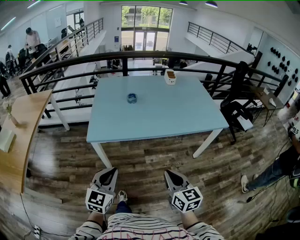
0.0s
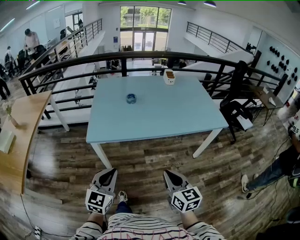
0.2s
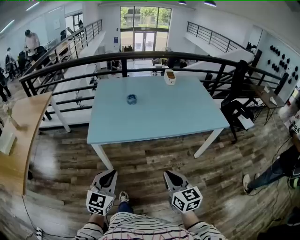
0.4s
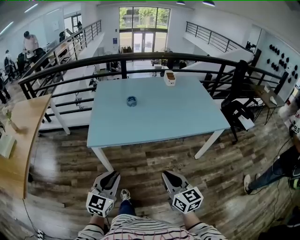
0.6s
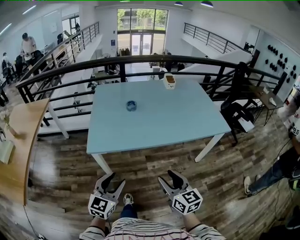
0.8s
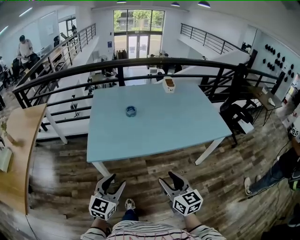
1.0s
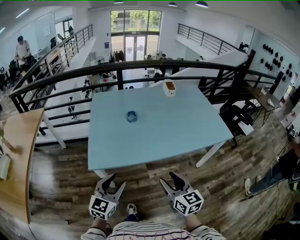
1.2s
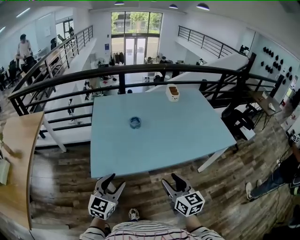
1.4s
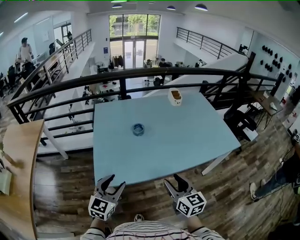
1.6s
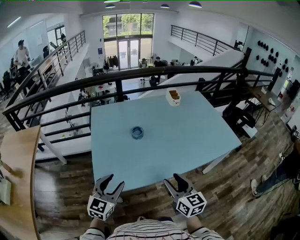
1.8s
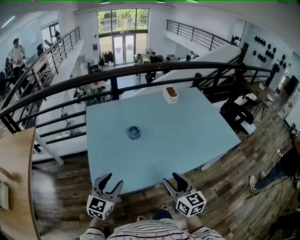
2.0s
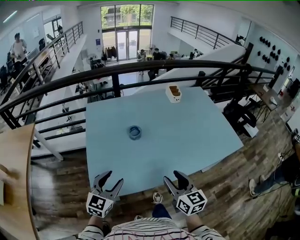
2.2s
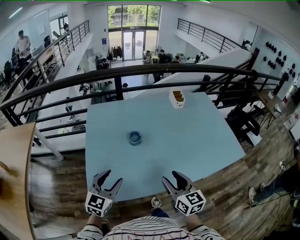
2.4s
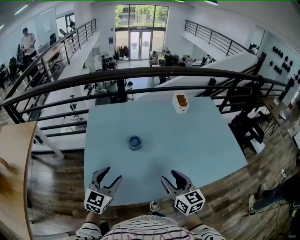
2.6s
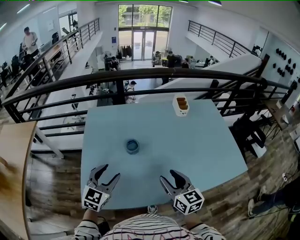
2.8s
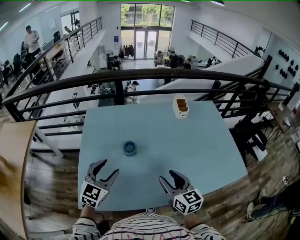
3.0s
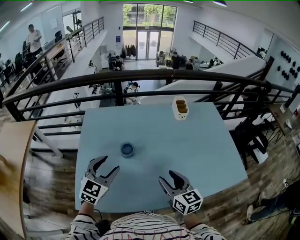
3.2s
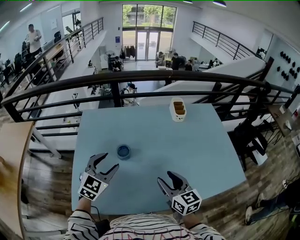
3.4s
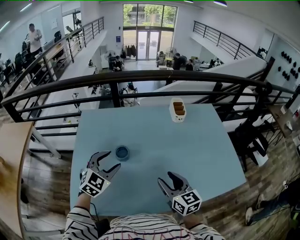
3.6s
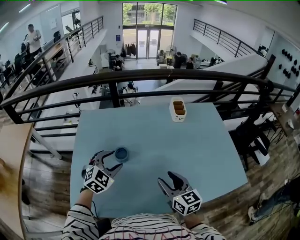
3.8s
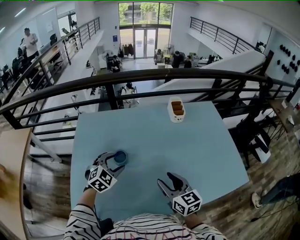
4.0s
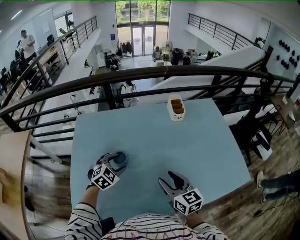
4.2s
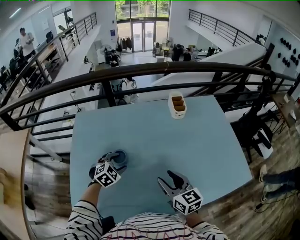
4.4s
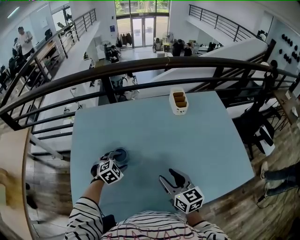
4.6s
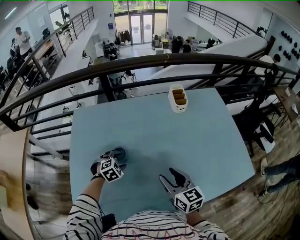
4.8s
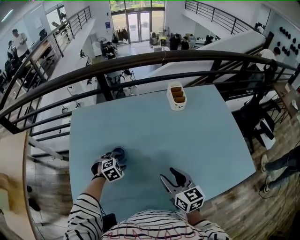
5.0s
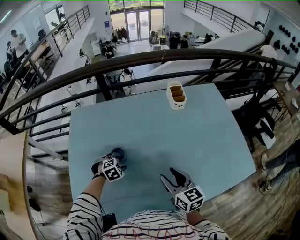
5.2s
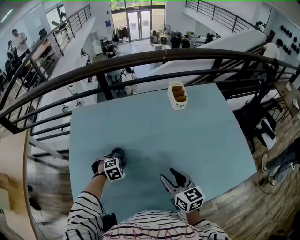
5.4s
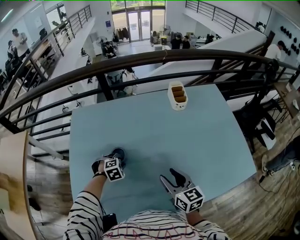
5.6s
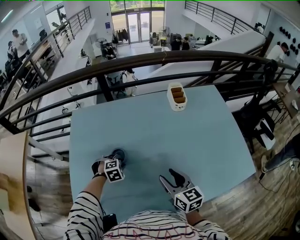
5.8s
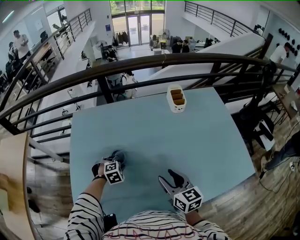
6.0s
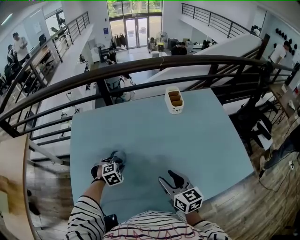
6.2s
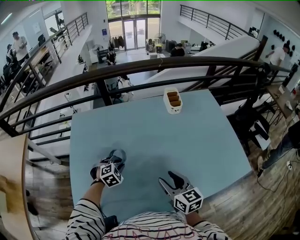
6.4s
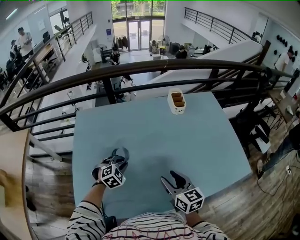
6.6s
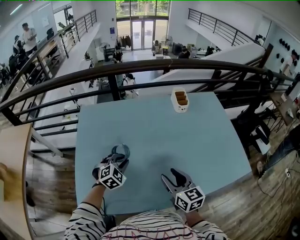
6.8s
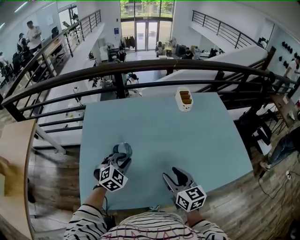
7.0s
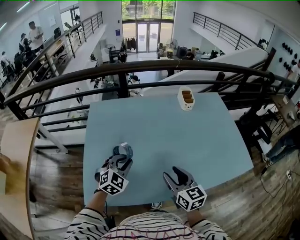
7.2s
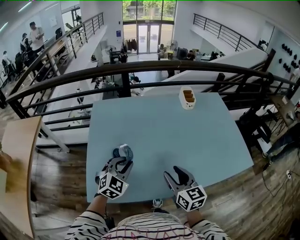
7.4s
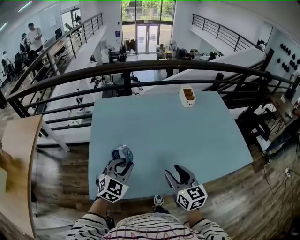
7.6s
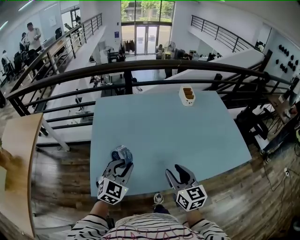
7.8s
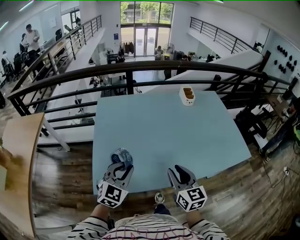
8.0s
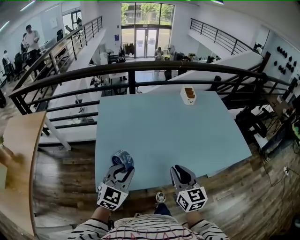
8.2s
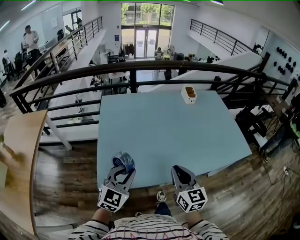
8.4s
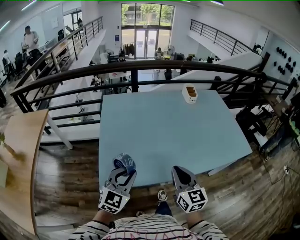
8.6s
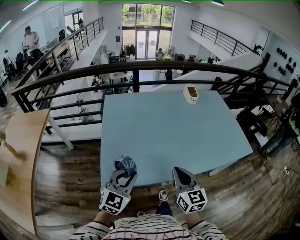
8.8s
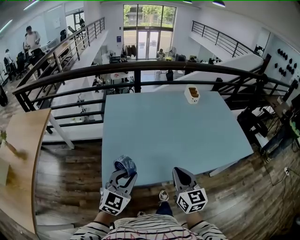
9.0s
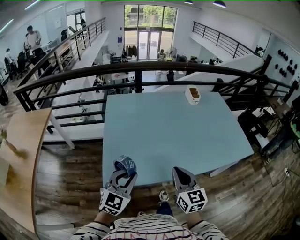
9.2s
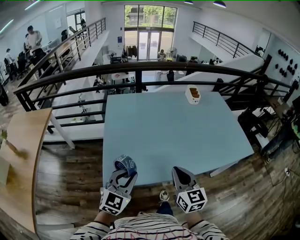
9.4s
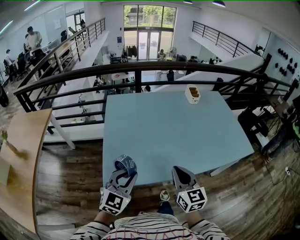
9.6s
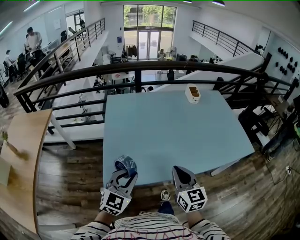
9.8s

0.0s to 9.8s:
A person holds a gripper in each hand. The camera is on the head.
0.0s to 1.4s: Both grippers travel together forward, about 20 cm. The left gripper opens, while the right gripper opens.
1.4s to 2.8s: Both grippers travel together forward, about 25 cm.
2.8s to 4.2s: The left gripper is displaced forward, downward and to the right by about 25 cm, and turns by approximately 30 degrees, while the right gripper is displaced forward and to the right by about 10 cm.
4.2s to 5.6s: The left gripper goes roughly 15 cm downward, changes its angle by roughly 30 degrees, and closes.
5.6s to 7.0s: The left gripper moves upward and backward, some 15 cm, and tilts its fingers roughly 30 degrees upward. The right gripper moves backward, approximately 5 cm.
7.0s to 8.4s: The left gripper heads backward and upward, covering roughly 25 cm, and rotates about 30 degrees; the right gripper travels backward and to the left by some 15 cm, and closes its fingers.
8.4s to 9.8s: There are only small adjustments of the grippers.

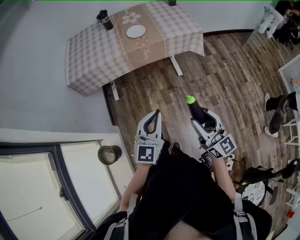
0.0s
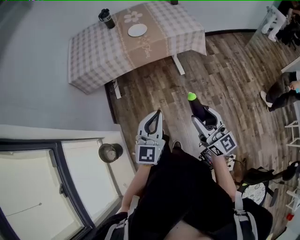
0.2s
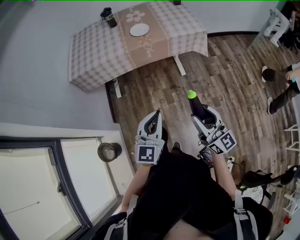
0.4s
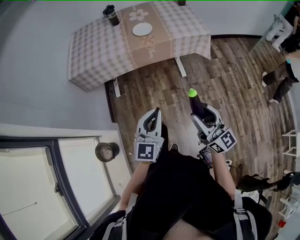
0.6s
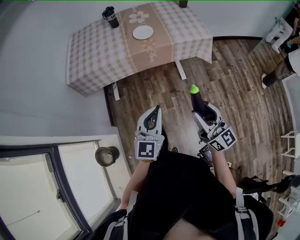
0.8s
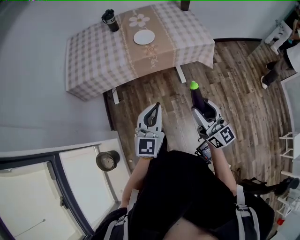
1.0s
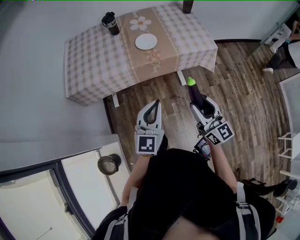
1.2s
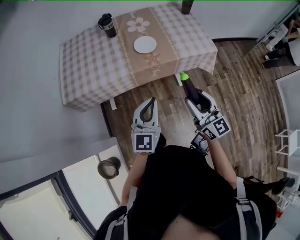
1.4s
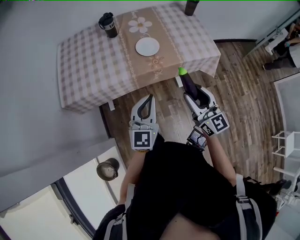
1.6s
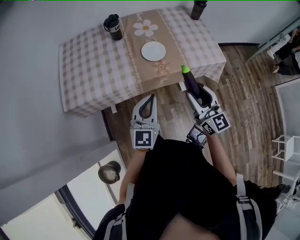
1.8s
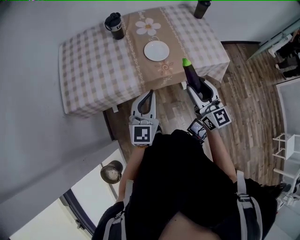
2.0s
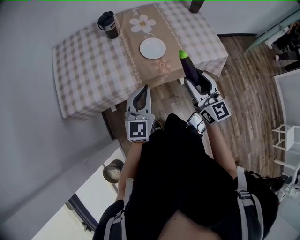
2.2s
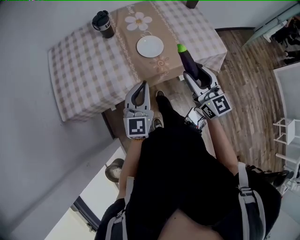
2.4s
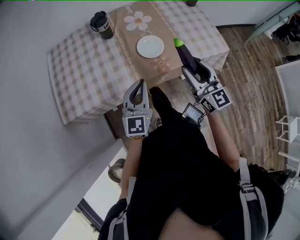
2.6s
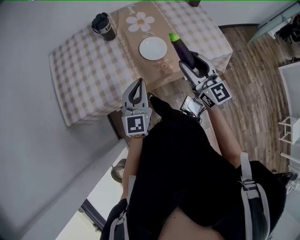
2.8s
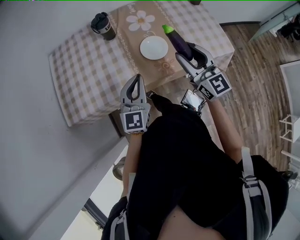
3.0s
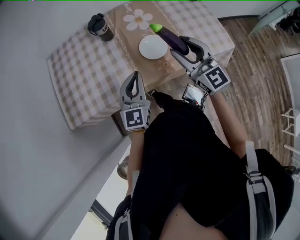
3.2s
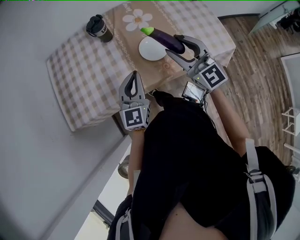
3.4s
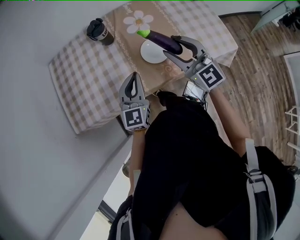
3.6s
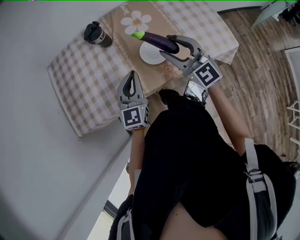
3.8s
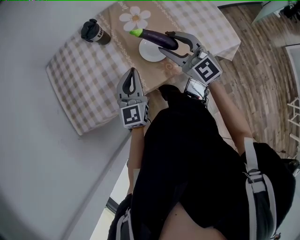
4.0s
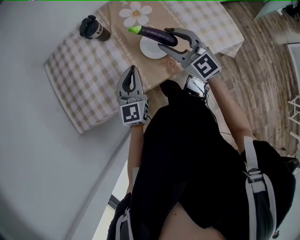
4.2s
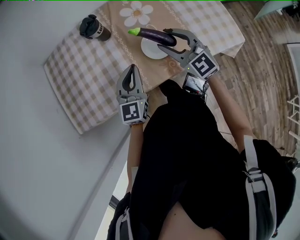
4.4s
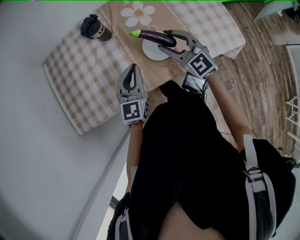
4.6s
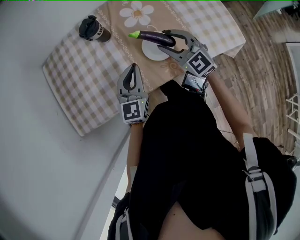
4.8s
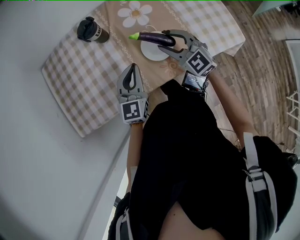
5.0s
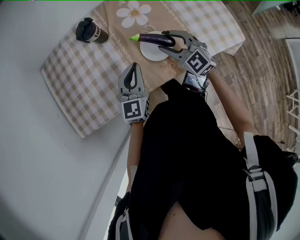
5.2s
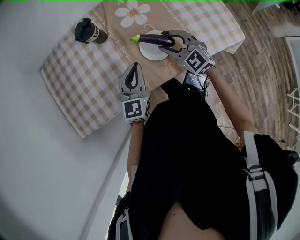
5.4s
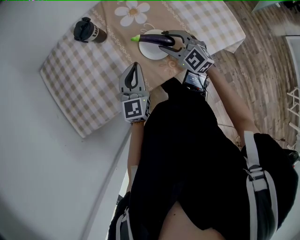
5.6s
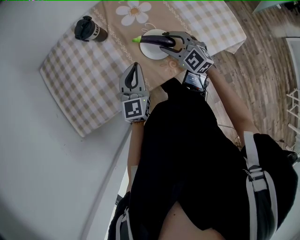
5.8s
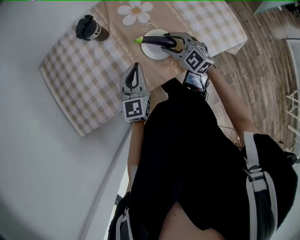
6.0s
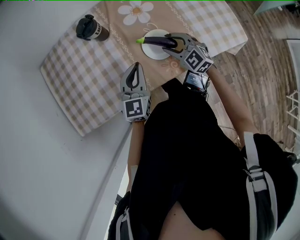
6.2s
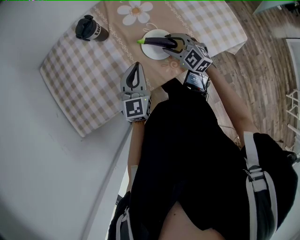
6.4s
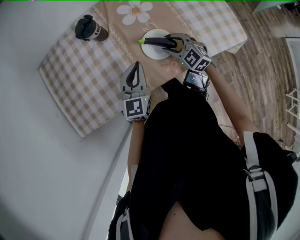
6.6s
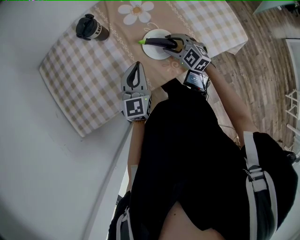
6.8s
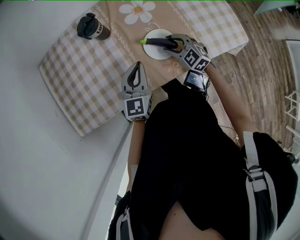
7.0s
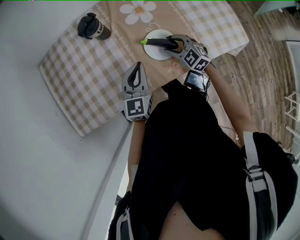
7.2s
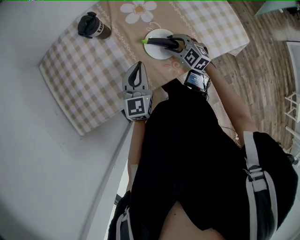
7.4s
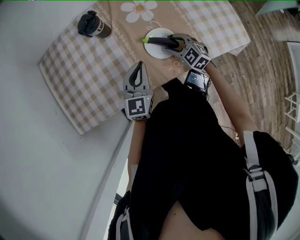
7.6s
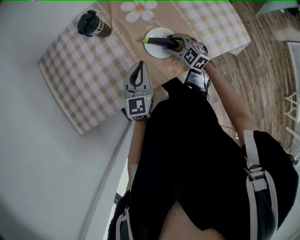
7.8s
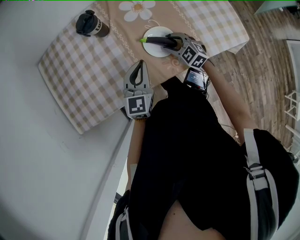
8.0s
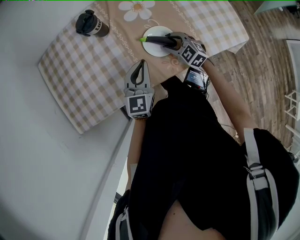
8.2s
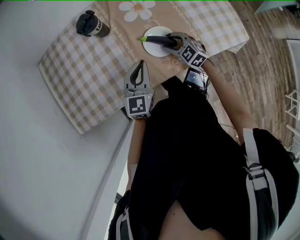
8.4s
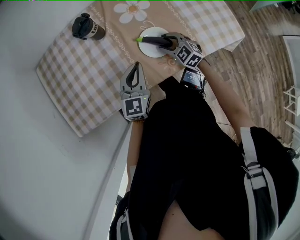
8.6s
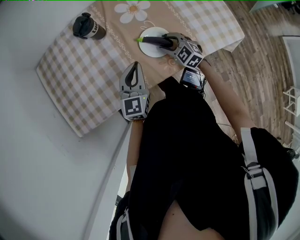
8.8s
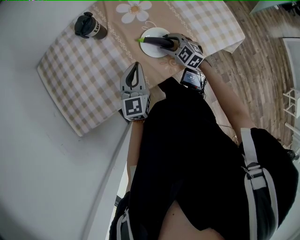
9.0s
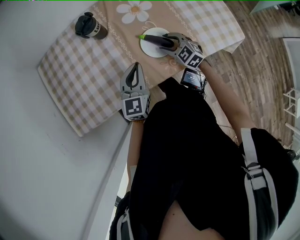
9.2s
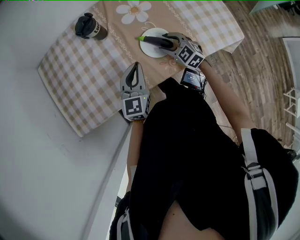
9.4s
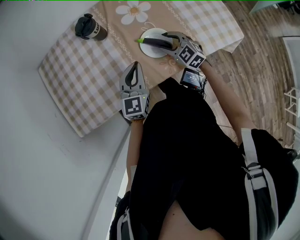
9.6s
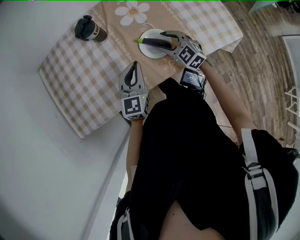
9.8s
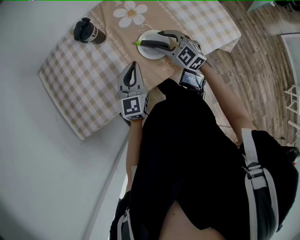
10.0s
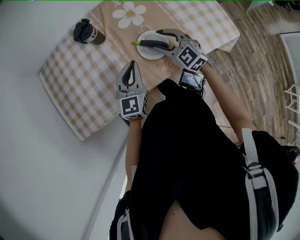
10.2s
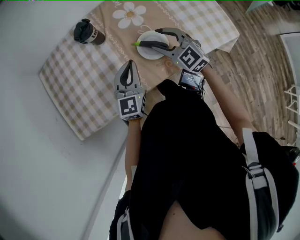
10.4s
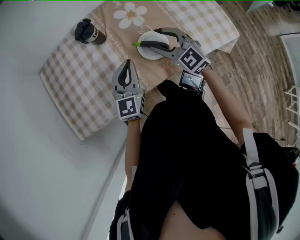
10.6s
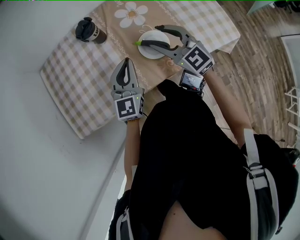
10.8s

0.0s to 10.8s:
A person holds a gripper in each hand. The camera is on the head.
0.0s to 1.6s: Both grippers move forward, about 35 cm.
1.6s to 3.0s: The grippers both shift forward by some 20 cm.
3.0s to 4.6s: The left gripper heads forward, covering roughly 10 cm. The right gripper is displaced forward and downward by roughly 15 cm, and swivels about 20 degrees.
4.6s to 6.2s: The right gripper goes approximately 10 cm downward.
6.2s to 7.8s: The right gripper goes approximately 5 cm downward.
7.8s to 9.2s: Both grippers stay put.
9.2s to 10.8s: The left gripper travels upward by roughly 10 cm. The right gripper heads upward, covering some 20 cm, and turns by approximately 20 degrees.

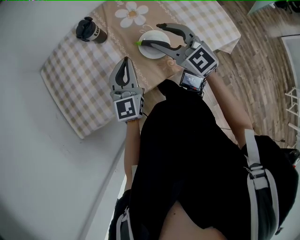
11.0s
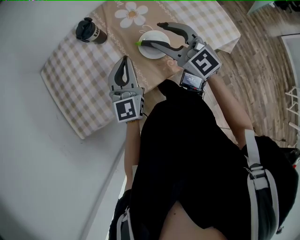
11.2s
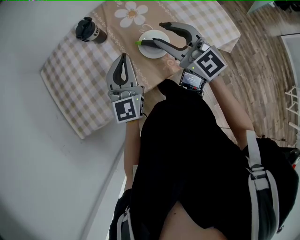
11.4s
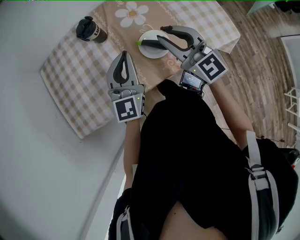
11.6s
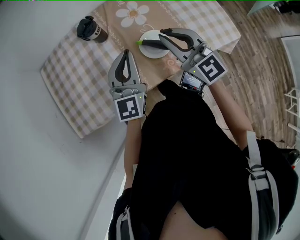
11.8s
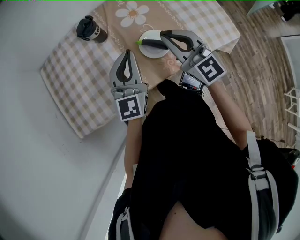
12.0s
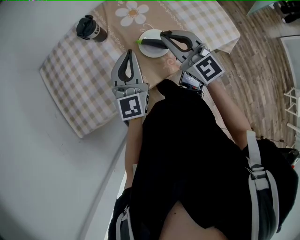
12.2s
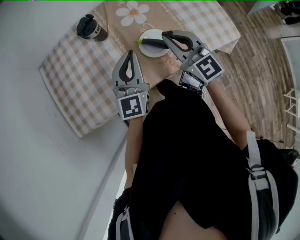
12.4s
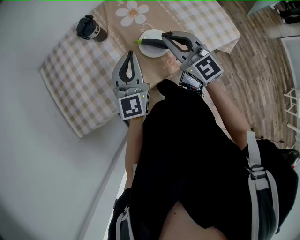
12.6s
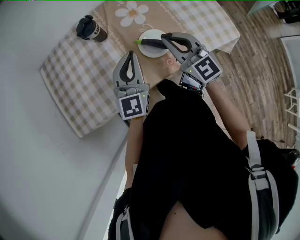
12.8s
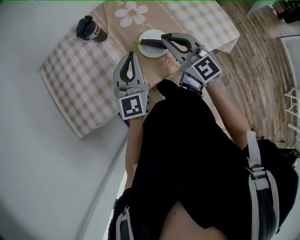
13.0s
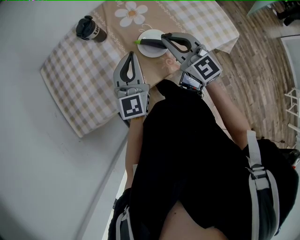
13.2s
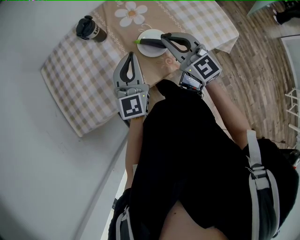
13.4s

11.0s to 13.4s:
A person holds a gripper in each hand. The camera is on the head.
11.0s to 12.2s: The right gripper closes up.
12.2s to 13.4s: The grippers move only a little.

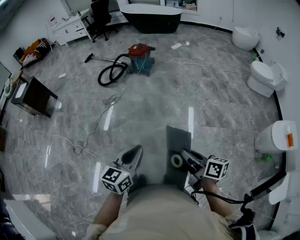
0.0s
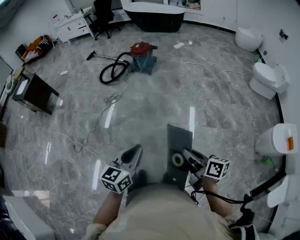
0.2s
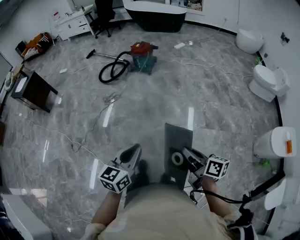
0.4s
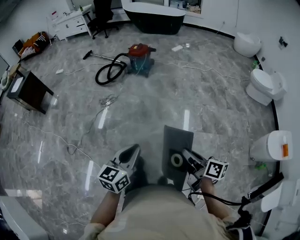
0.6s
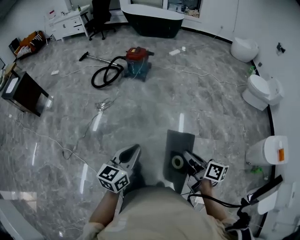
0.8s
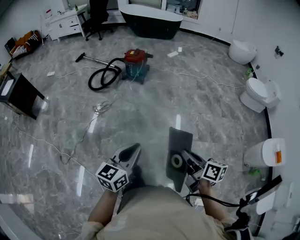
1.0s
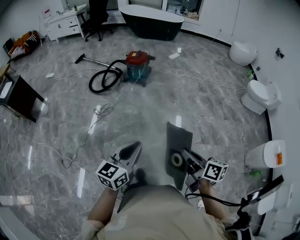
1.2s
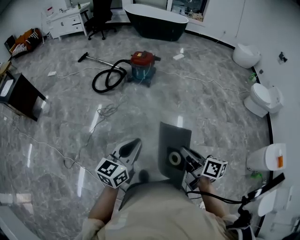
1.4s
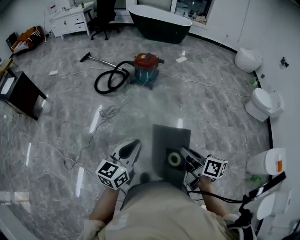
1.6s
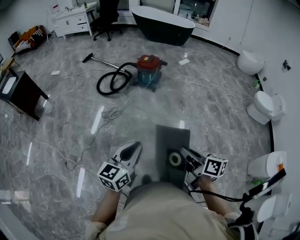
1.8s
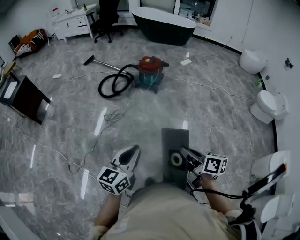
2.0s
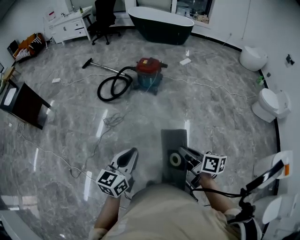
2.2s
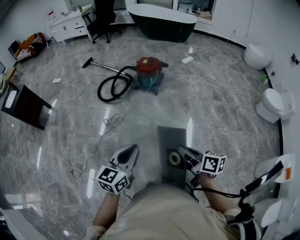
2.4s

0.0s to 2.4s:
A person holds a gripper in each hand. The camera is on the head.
0.0s to 1.2s: The left gripper changes place by roughly 25 cm.
1.2s to 2.4s: The left gripper changes place by roughly 20 cm.
